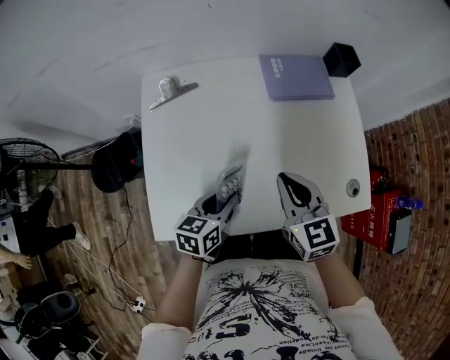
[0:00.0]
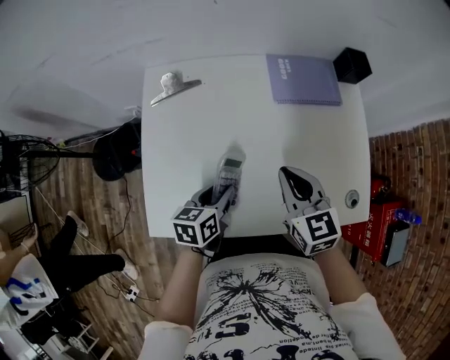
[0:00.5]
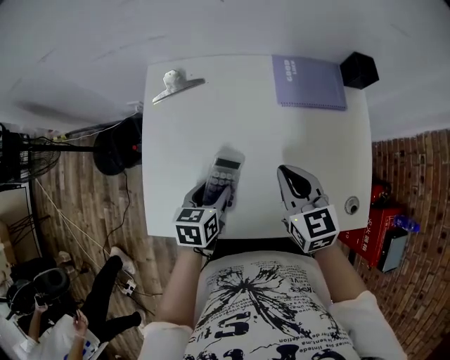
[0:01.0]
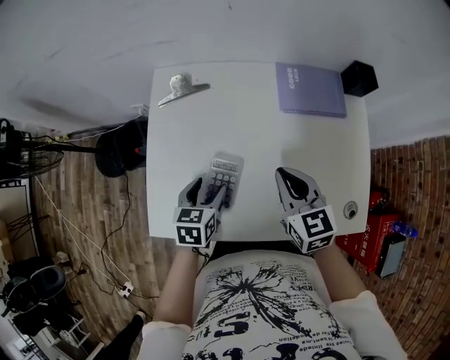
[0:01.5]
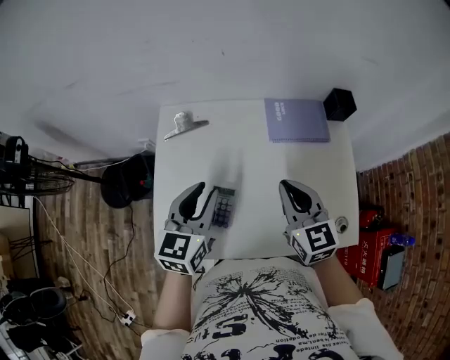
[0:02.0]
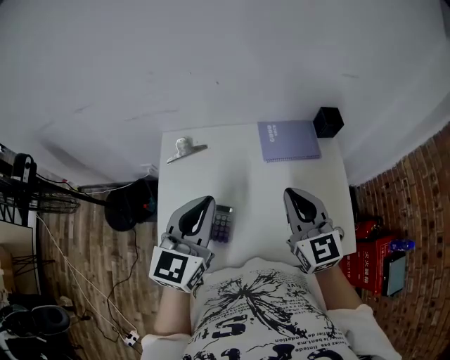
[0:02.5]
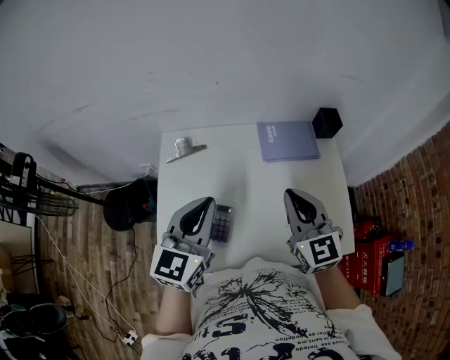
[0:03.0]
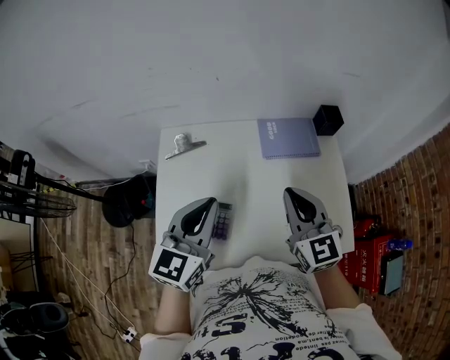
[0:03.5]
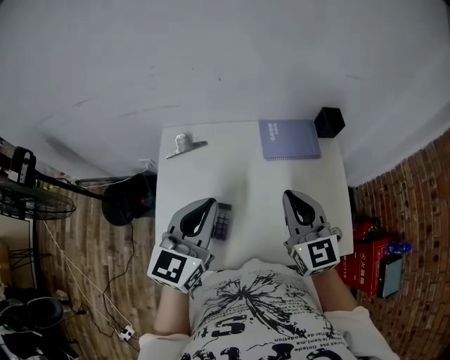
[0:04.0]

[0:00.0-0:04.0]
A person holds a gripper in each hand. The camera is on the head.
0:00.0 to 0:02.0: The left gripper goes about 20 cm upward and forward, turns by about 30 degrees, and opens, then closes again. Meanwhile the right gripper travels upward and forward by roughly 10 cm.
0:02.0 to 0:04.0: The grippers both shift upward by about 10 cm. The left gripper closes.

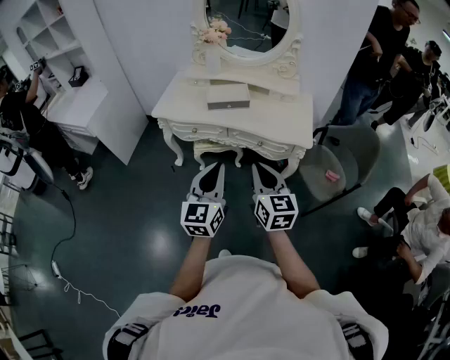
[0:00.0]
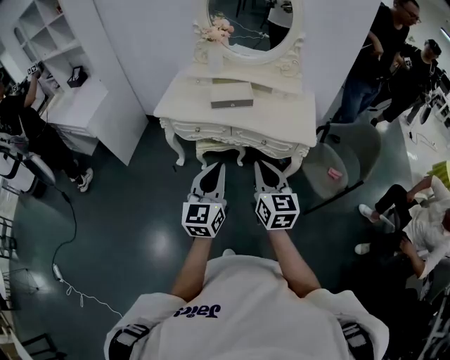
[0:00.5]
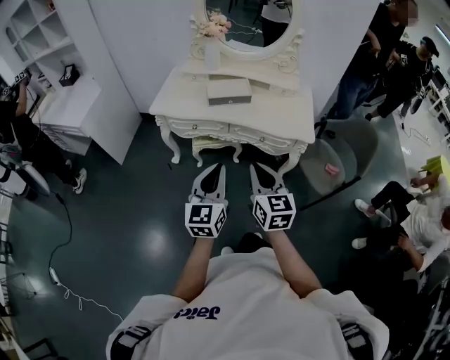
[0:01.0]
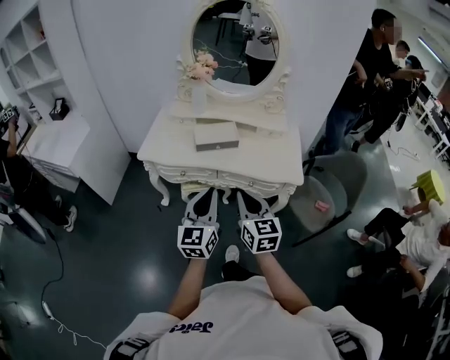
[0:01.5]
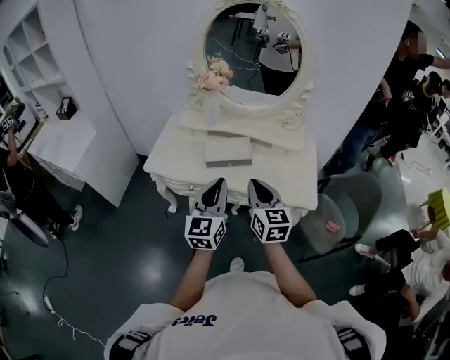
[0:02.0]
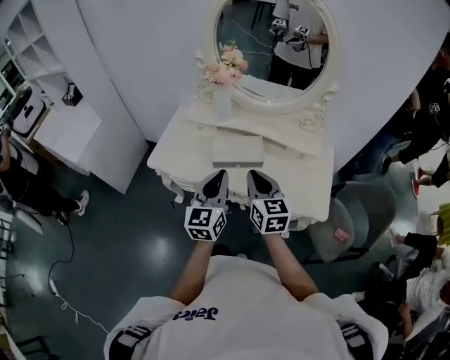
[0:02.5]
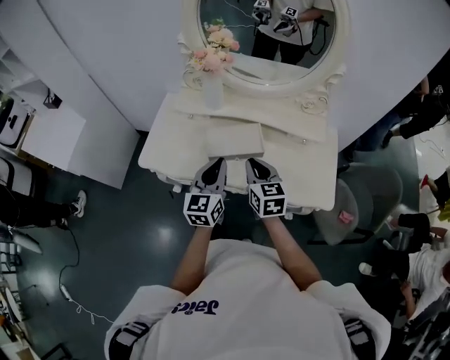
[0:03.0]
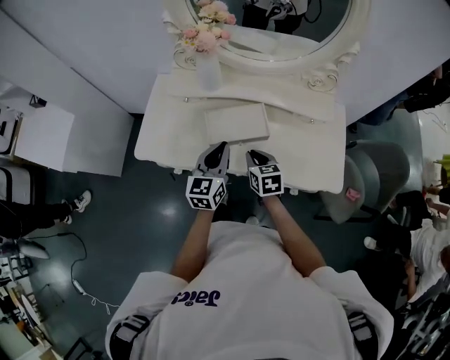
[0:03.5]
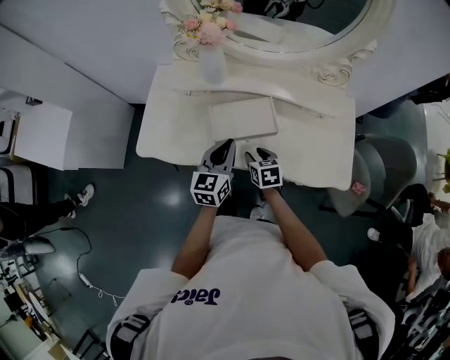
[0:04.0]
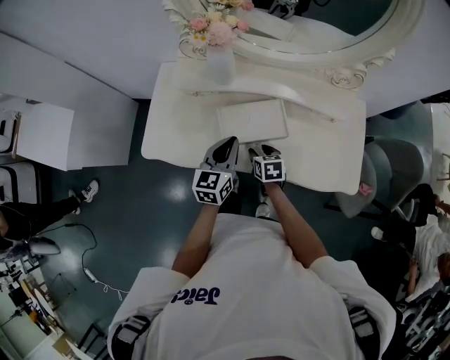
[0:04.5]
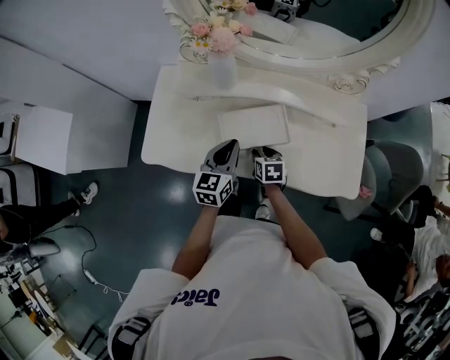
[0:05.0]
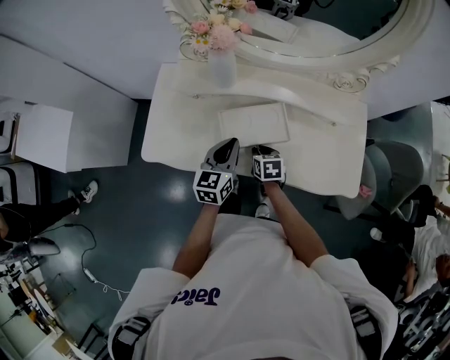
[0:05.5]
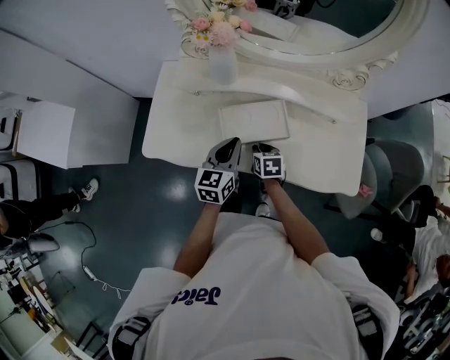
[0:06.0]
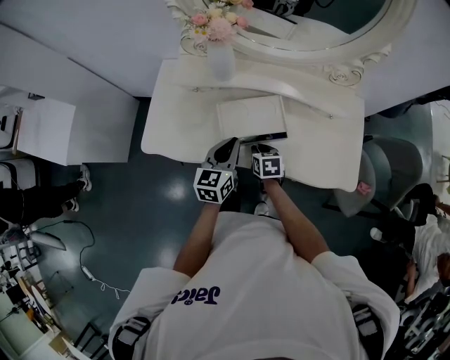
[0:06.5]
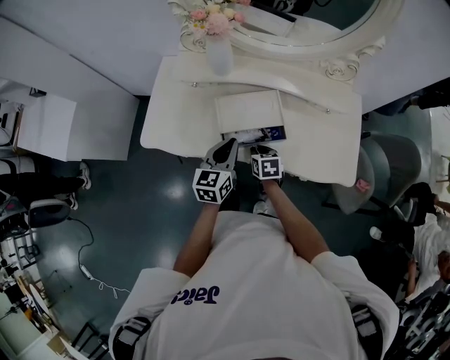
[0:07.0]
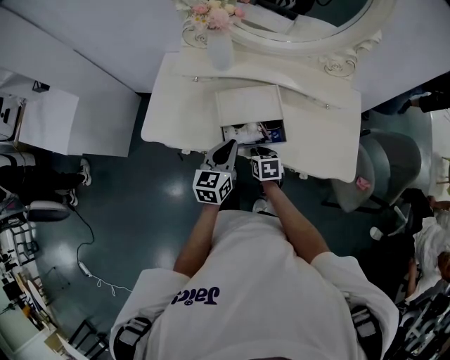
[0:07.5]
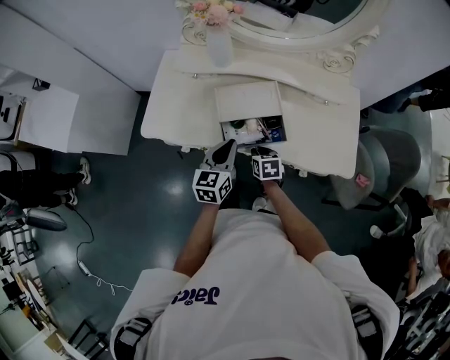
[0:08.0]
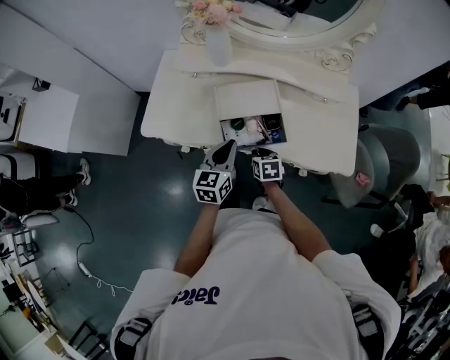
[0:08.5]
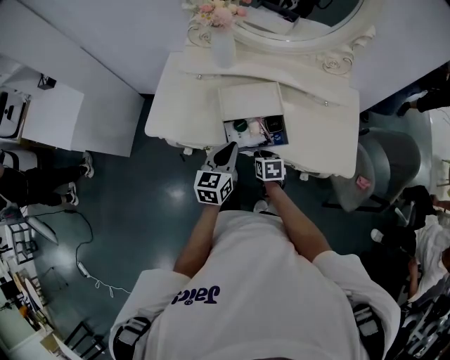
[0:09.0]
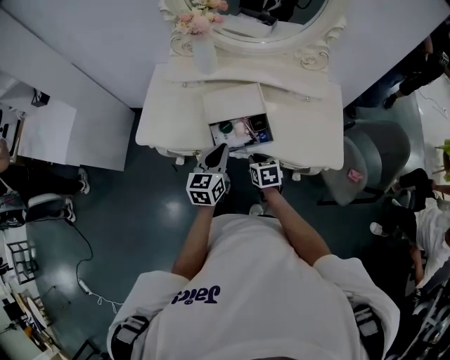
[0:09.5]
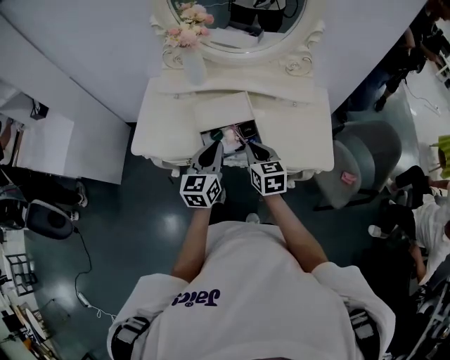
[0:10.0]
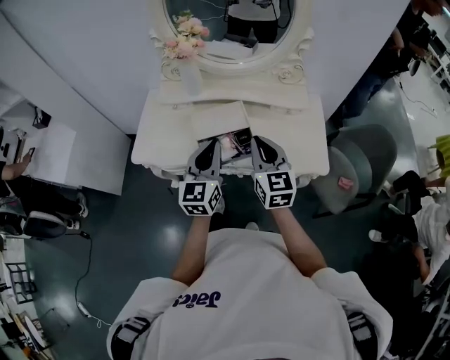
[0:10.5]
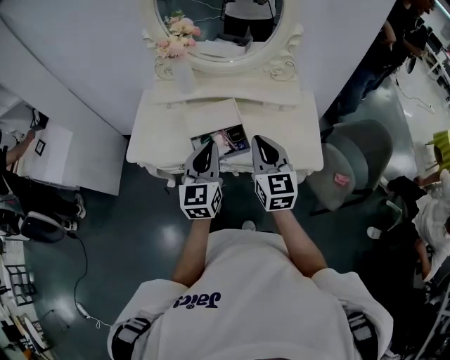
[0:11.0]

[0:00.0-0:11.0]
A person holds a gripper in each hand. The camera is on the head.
0:00.0 to 0:02.0: Both grippers move forward, about 25 cm.
0:02.0 to 0:03.5: The left gripper heads forward and downward, covering some 30 cm; the right gripper heads downward and forward, covering roughly 30 cm, and tilts its fingers some 30 degrees downward.
0:03.5 to 0:05.5: The left gripper travels downward and forward by some 10 cm, while the right gripper goes about 15 cm downward and forward, and opens, then closes once more.
0:05.5 to 0:07.5: The two grippers go about 10 cm backward.
0:07.5 to 0:09.0: The grippers move only a little.
0:09.0 to 0:11.0: The left gripper travels upward by about 15 cm, and swivels some 20 degrees. Meanwhile the right gripper travels upward by approximately 35 cm, and tilts its fingers about 50 degrees upward.

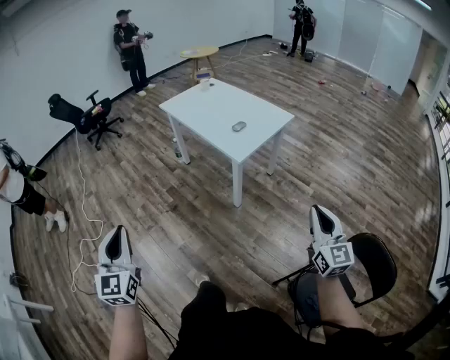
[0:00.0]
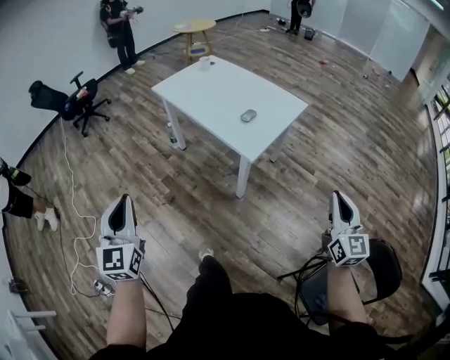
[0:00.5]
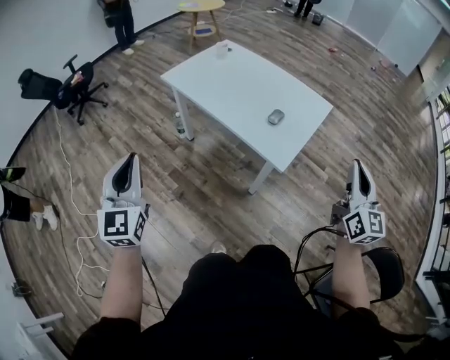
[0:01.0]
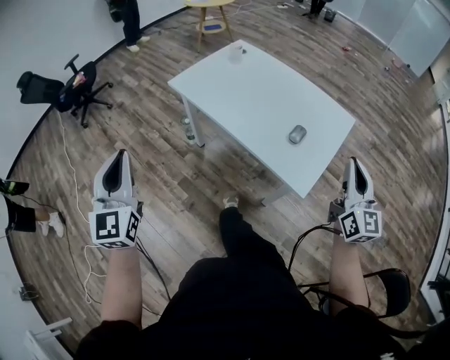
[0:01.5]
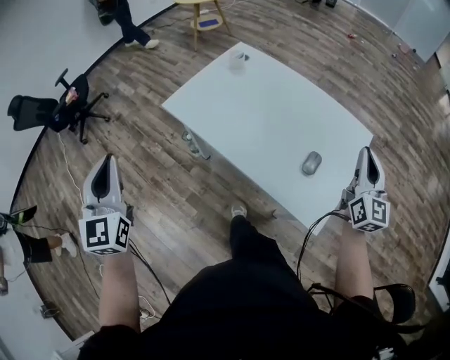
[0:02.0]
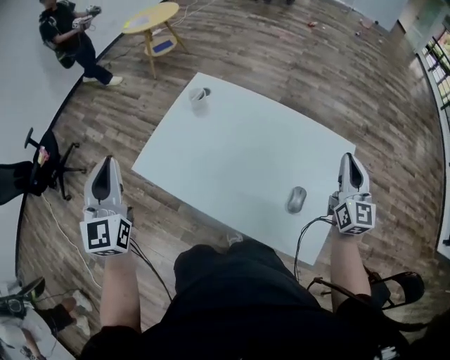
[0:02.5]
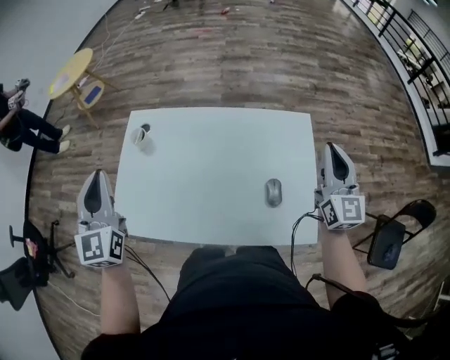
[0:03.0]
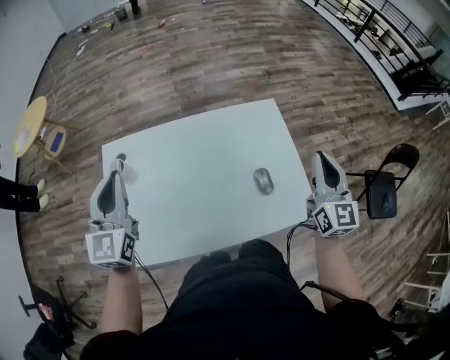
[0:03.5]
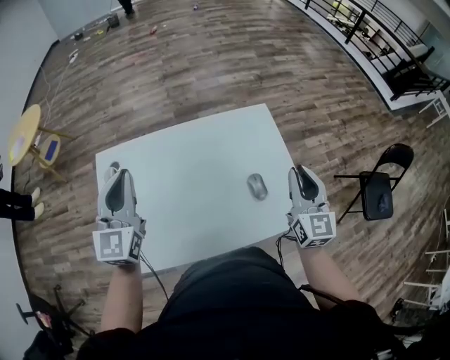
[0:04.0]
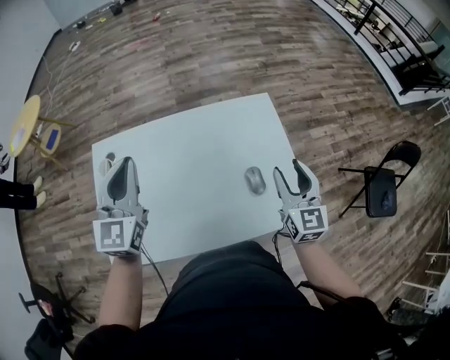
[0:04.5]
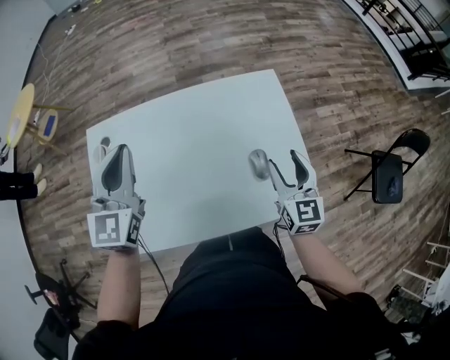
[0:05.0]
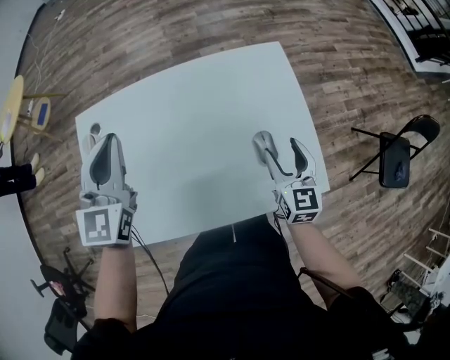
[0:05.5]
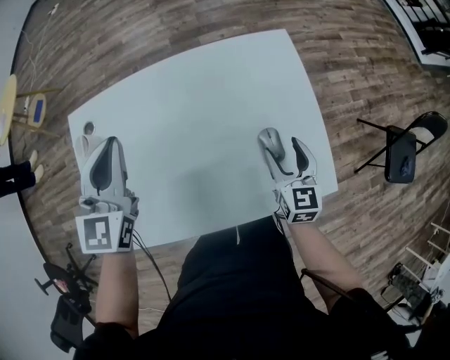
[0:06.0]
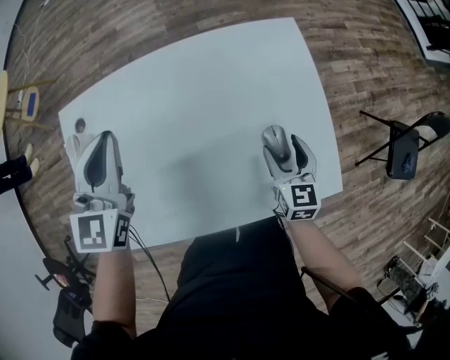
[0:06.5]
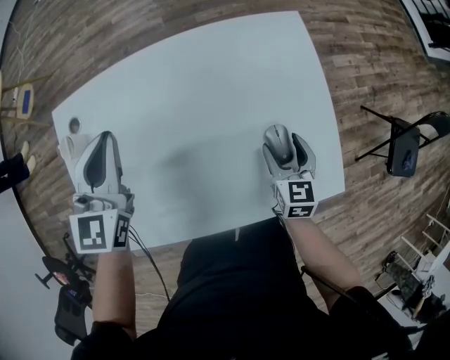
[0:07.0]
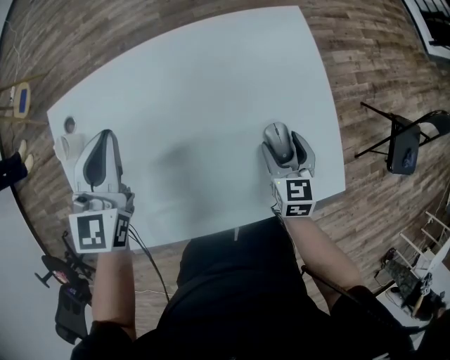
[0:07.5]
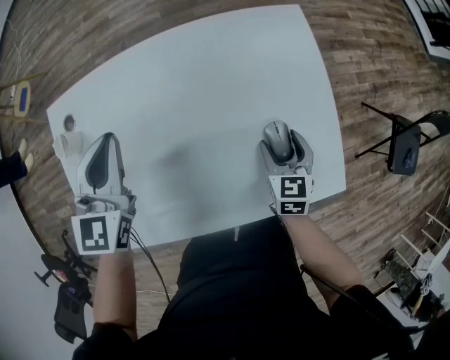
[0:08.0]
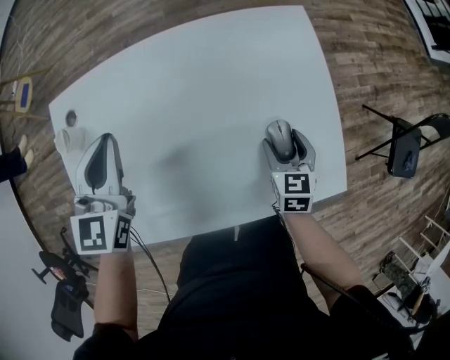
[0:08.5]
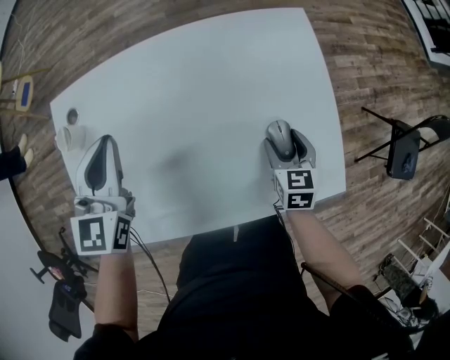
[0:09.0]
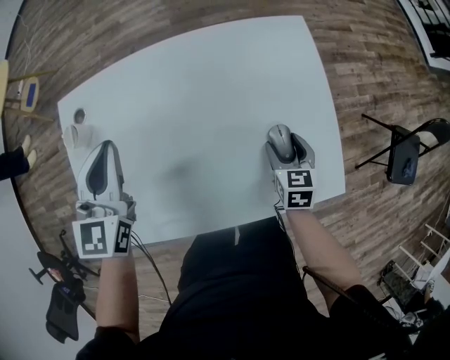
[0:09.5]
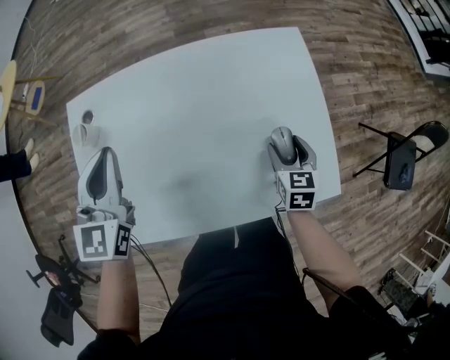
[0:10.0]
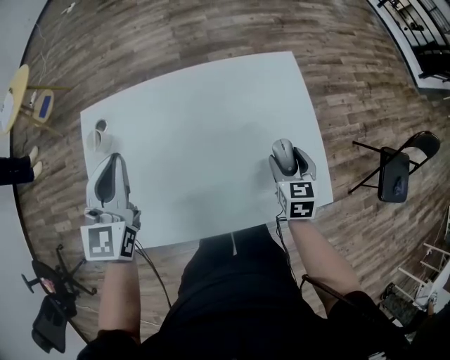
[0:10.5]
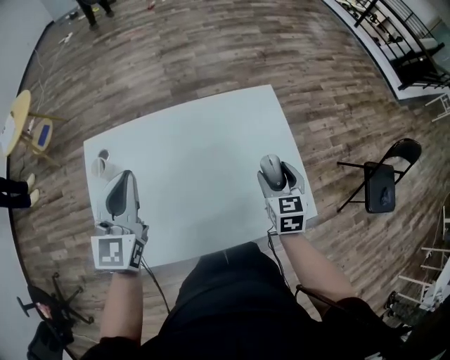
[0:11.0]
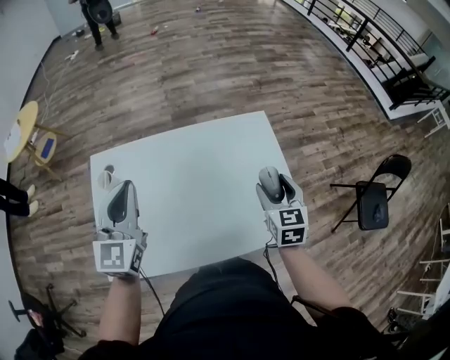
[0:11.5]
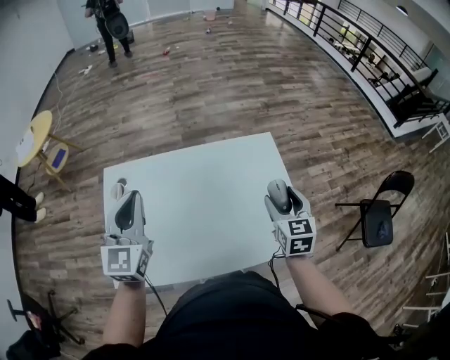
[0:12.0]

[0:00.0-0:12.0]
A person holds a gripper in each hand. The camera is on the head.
0:00.0 to 0:02.0: Both grippers are carried forward, approximately 60 cm. The right gripper turns by approximately 20 degrees.
0:02.0 to 0:04.0: The right gripper ends up some 5 cm from where it was, and swivels some 40 degrees, while the left gripper ends up about 50 cm from where it was, and rotates some 60 degrees.
0:04.0 to 0:06.0: The left gripper heads downward, covering about 5 cm. Meanwhile the right gripper goes roughly 20 cm downward, turns by about 20 degrees, and opens.
0:06.0 to 0:08.0: The grippers both shift downward by some 5 cm.
0:08.0 to 0:10.0: The left gripper shifts by about 5 cm.
0:10.0 to 0:12.0: The right gripper goes about 20 cm upward. The left gripper travels upward by about 10 cm.
